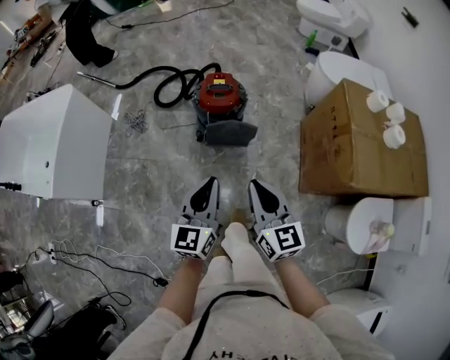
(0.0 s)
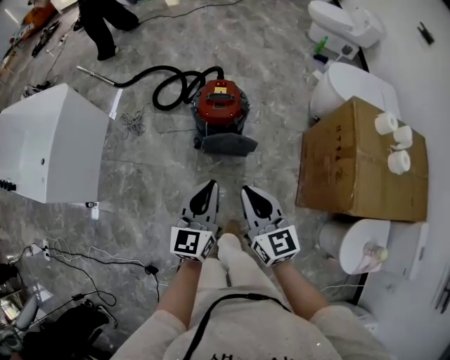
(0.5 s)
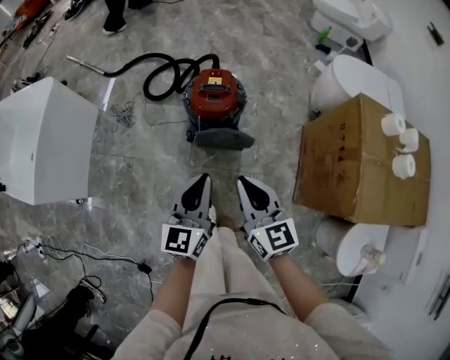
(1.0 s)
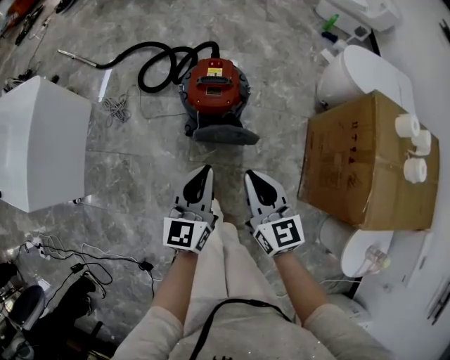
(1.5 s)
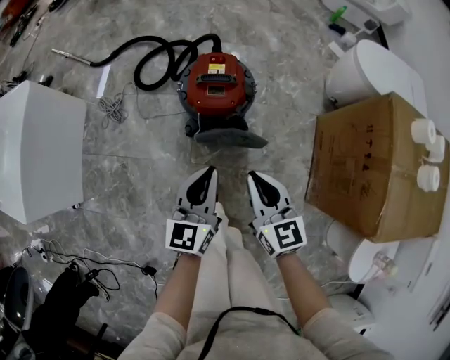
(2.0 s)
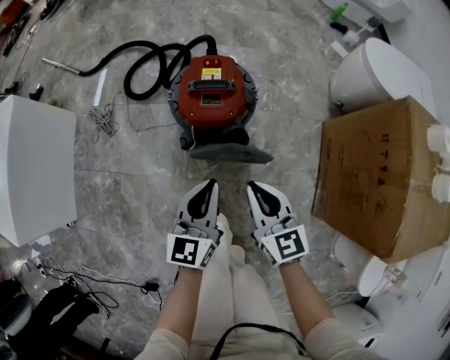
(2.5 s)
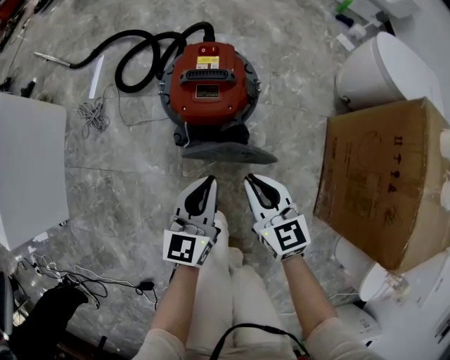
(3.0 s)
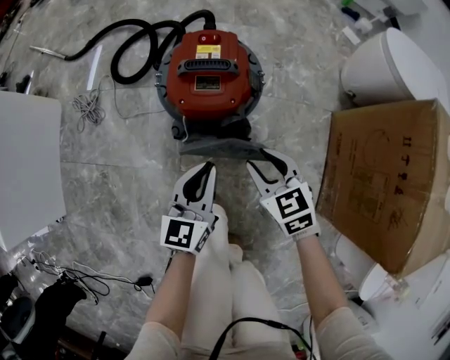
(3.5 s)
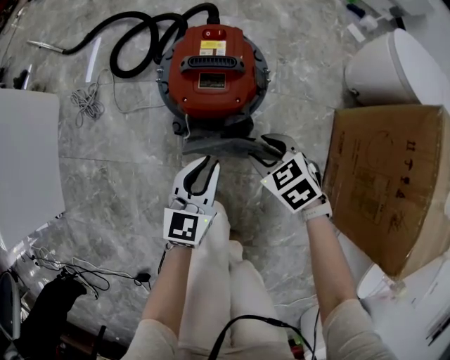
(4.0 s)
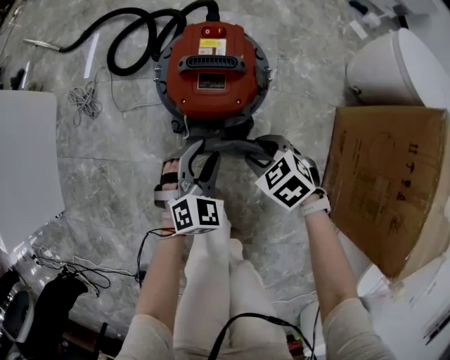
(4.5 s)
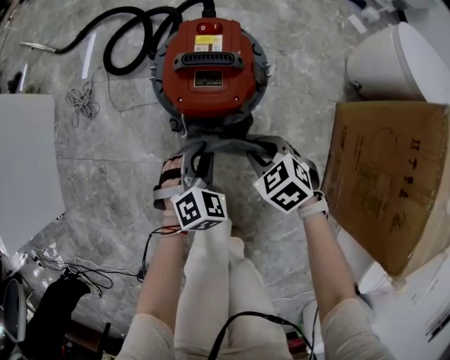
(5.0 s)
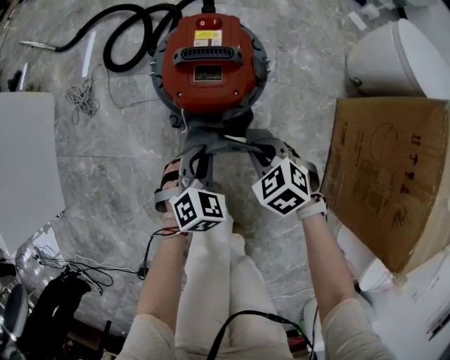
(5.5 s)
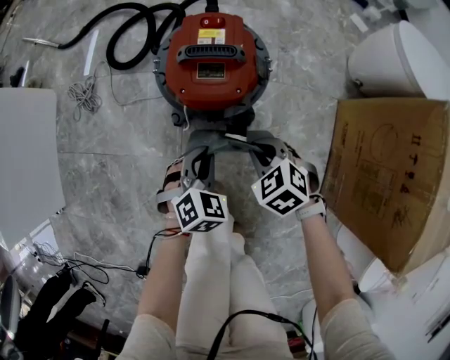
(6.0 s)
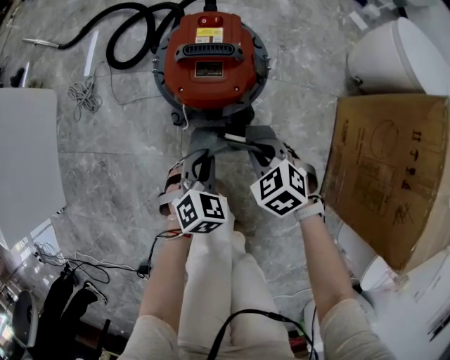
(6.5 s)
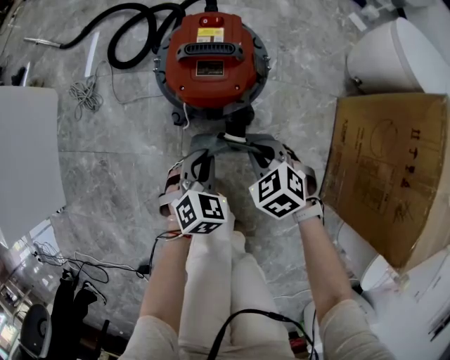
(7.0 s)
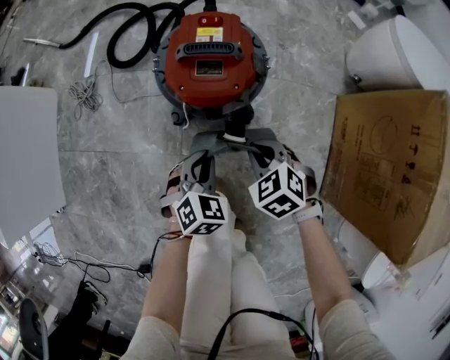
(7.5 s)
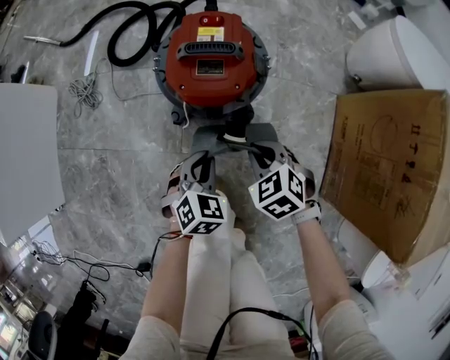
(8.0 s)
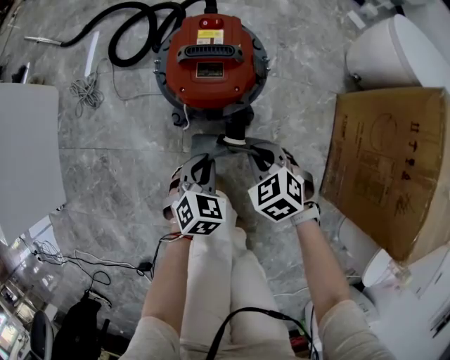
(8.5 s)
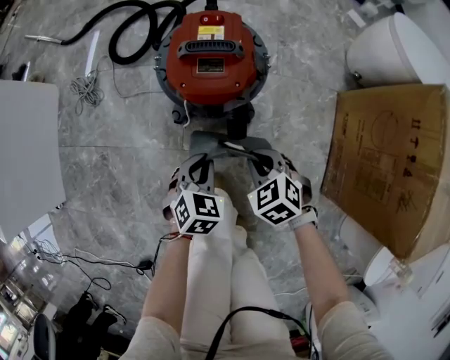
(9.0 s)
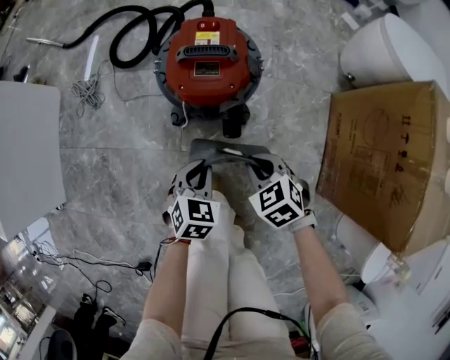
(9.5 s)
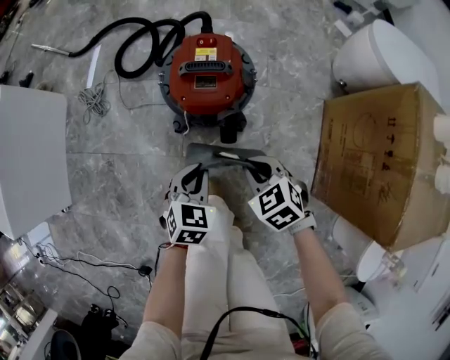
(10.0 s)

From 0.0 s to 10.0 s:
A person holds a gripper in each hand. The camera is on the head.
From 0.0 s to 2.0 s: Both grippers move forward and downward, some 30 cm.
From 2.0 s to 4.0 s: The left gripper travels downward by some 20 cm, while the right gripper goes roughly 25 cm downward and forward, angles its fingers downward, by some 40 degrees, and opens its fingers.
From 4.0 s to 6.0 s: The right gripper closes. The left gripper shifts approximately 5 cm downward, turns by some 50 degrees, and opens, then closes again.
From 6.0 s to 8.0 s: The grippers stay close to where they were, moving slightly.
From 8.0 s to 10.0 s: Both grippers travel together upward, approximately 10 cm.

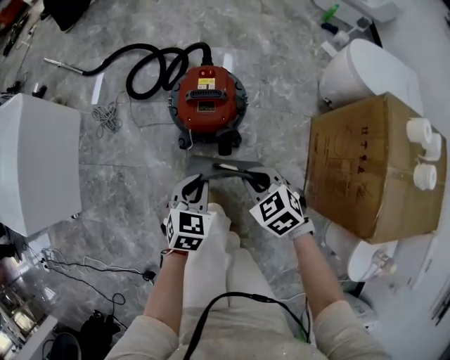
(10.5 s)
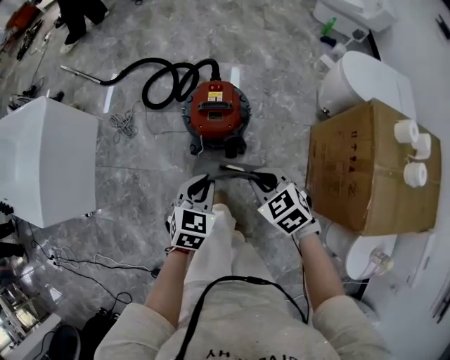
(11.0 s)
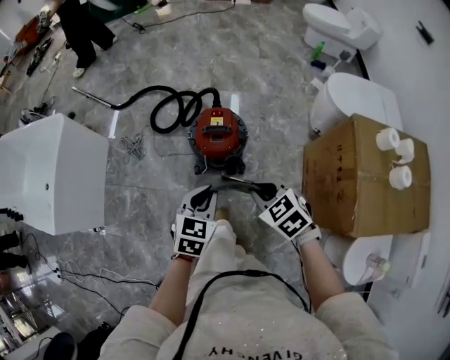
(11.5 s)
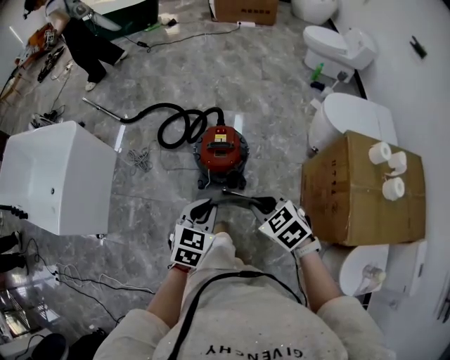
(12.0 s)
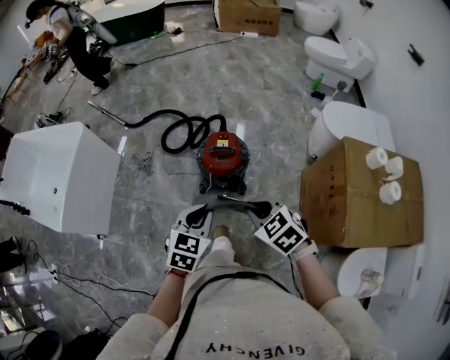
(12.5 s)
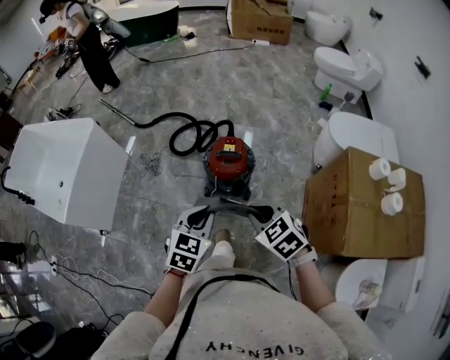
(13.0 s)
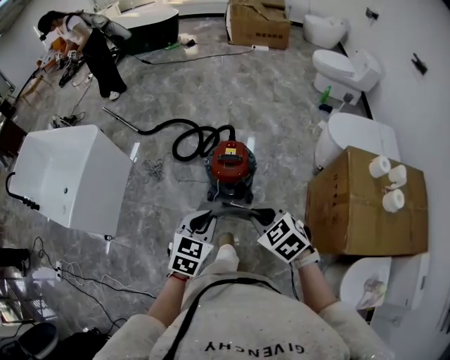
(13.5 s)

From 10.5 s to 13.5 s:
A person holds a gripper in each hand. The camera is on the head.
From 10.5 s to 12.0 s: Both grippers move upward, some 25 cm.
From 12.0 s to 13.5 s: The right gripper goes about 5 cm upward; the left gripper shifts by roughly 5 cm.

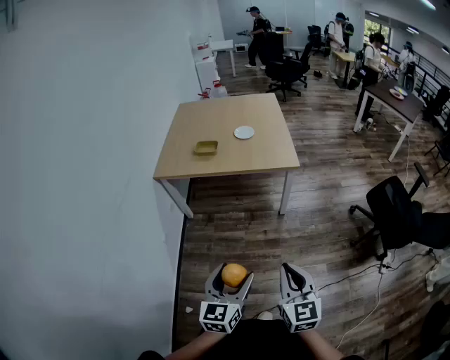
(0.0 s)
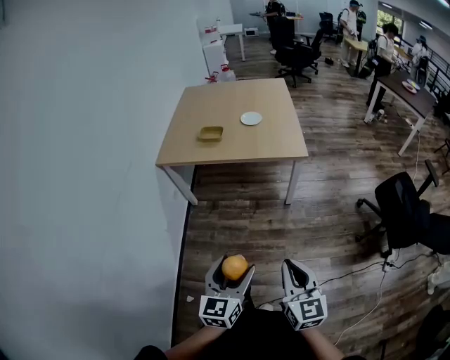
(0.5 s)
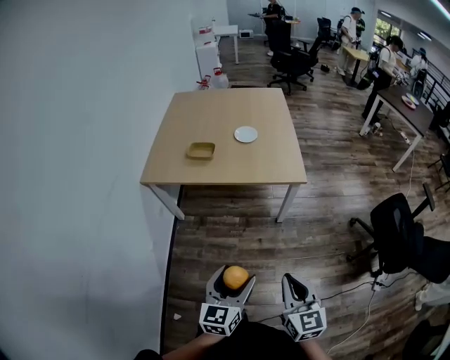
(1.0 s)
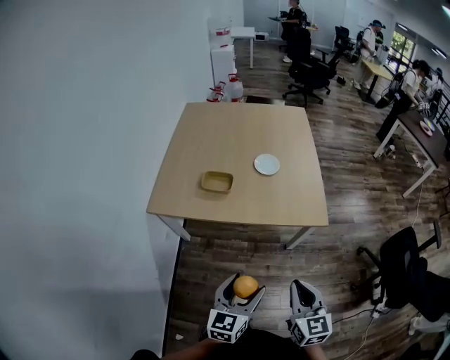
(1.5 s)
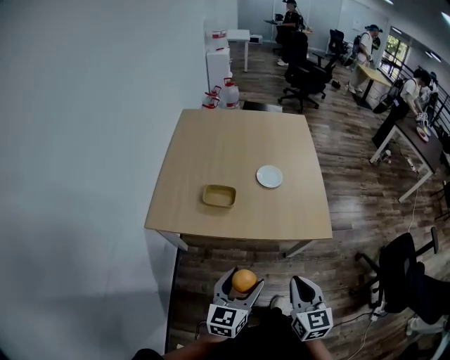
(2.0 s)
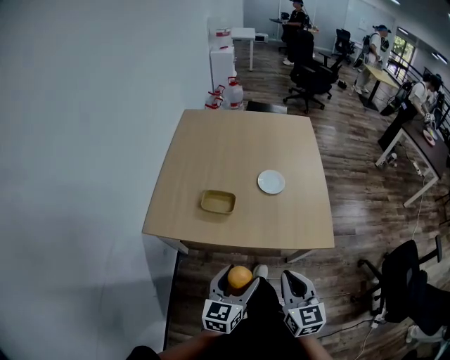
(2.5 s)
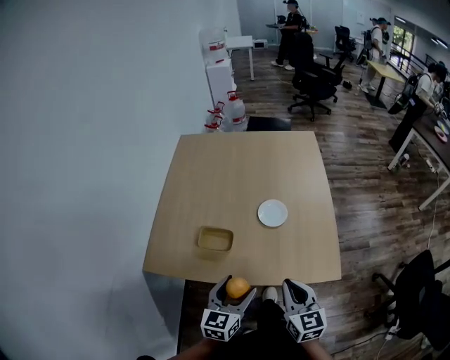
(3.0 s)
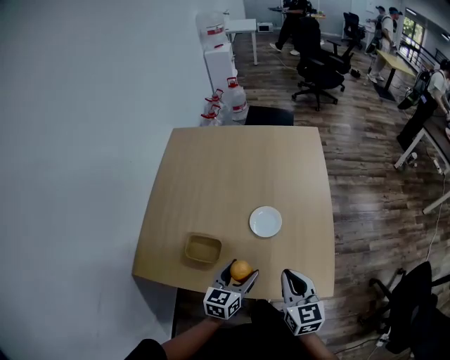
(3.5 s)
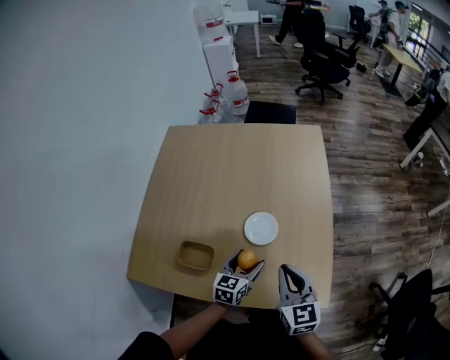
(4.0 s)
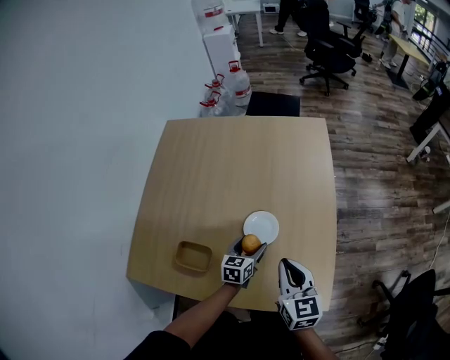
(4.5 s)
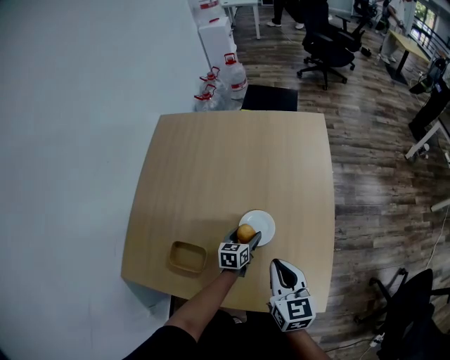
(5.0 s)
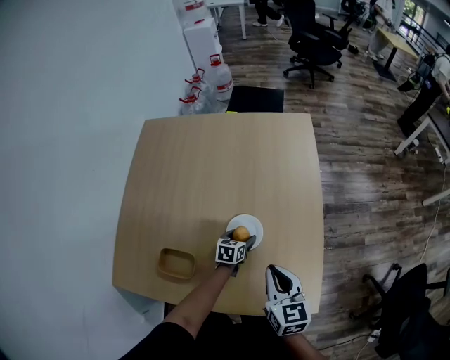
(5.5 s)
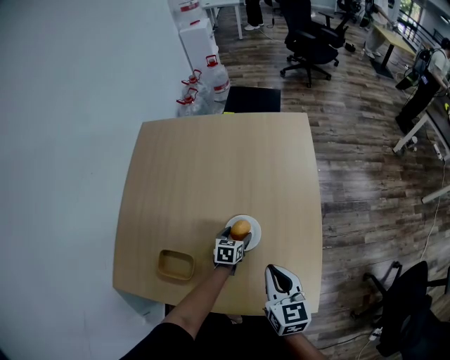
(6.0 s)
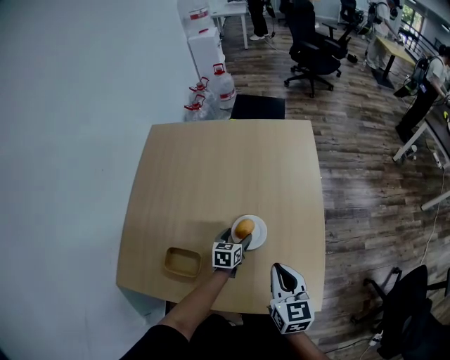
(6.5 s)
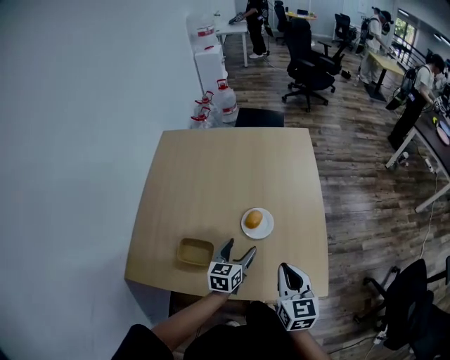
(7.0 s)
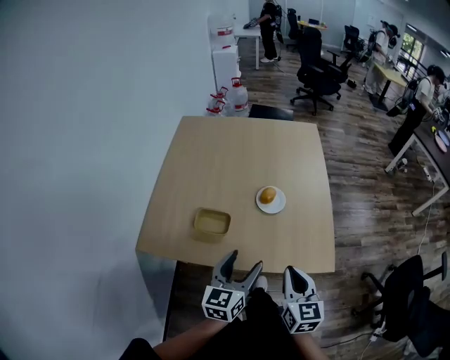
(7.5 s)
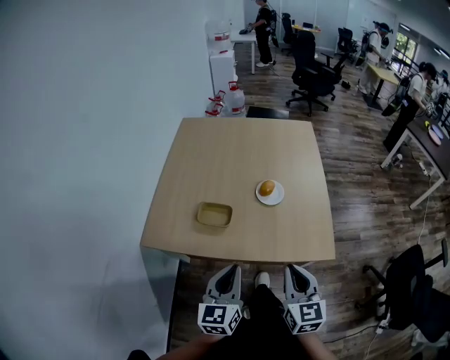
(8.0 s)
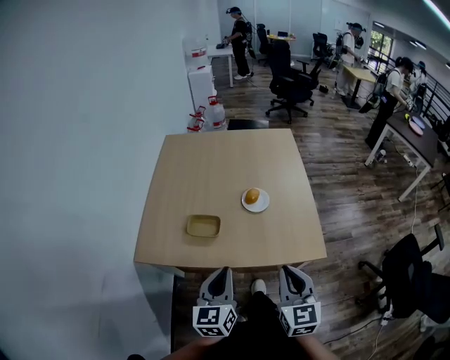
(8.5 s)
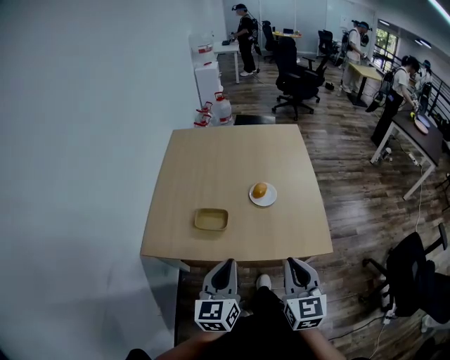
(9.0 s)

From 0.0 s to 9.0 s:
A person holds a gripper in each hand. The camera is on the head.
From 0.0 s to 2.0 s: The two grippers travel together, forward, roughly 40 cm.
From 2.0 s to 4.5 s: The pair of grippers is taken forward, about 40 cm. The left gripper travels downward by roughly 20 cm, and swivels about 20 degrees.
From 4.5 s to 7.0 s: The right gripper shifts some 10 cm backward. The left gripper moves upward and backward, roughly 10 cm.
From 7.0 s to 9.0 s: The right gripper moves backward, some 20 cm, while the left gripper moves backward and upward, approximately 35 cm, turns by approximately 20 degrees, and closes its fingers.

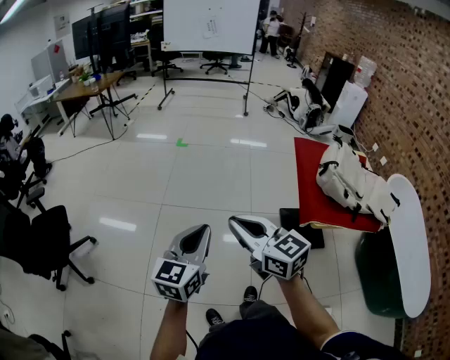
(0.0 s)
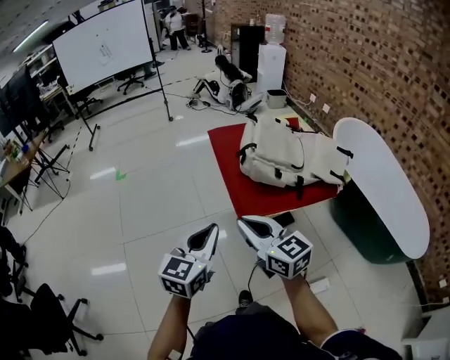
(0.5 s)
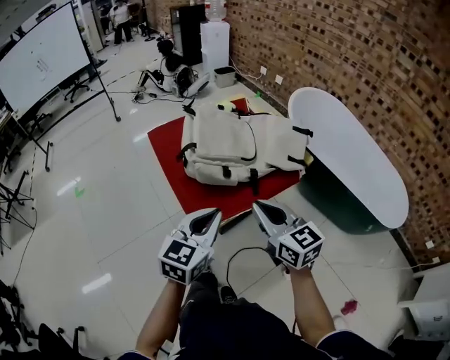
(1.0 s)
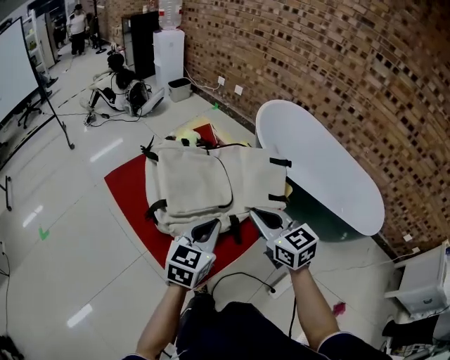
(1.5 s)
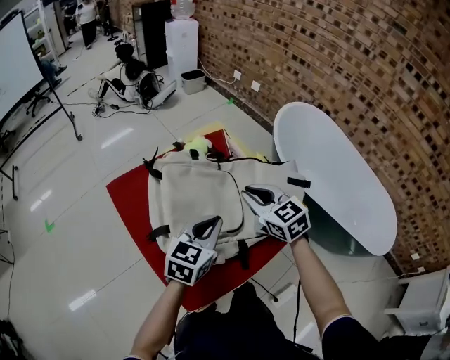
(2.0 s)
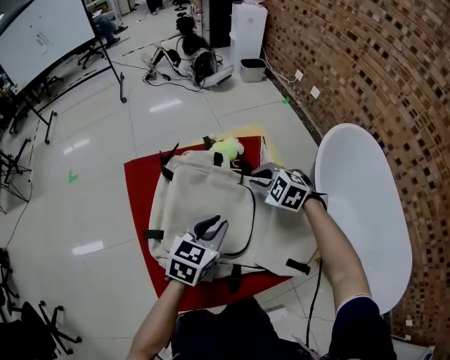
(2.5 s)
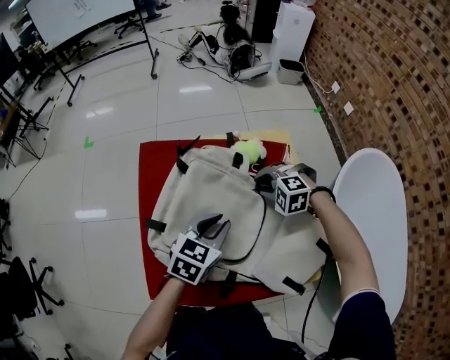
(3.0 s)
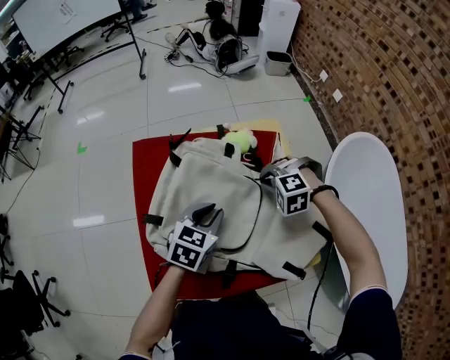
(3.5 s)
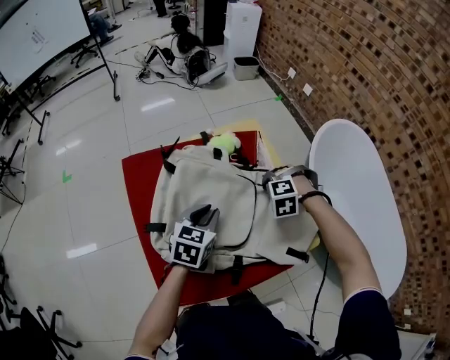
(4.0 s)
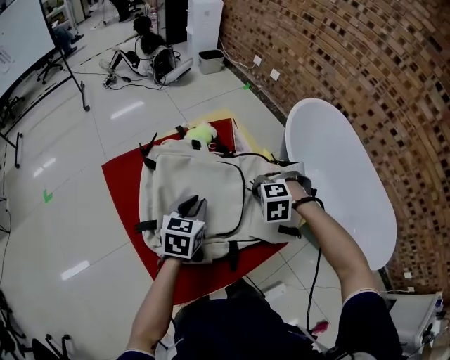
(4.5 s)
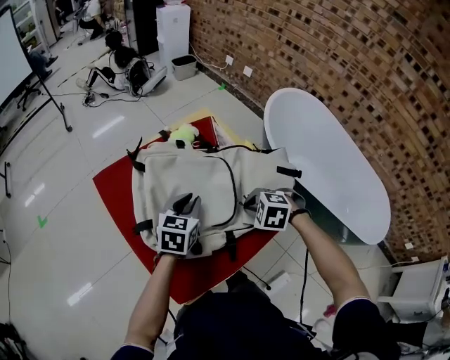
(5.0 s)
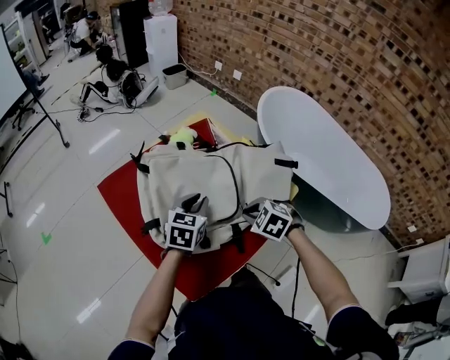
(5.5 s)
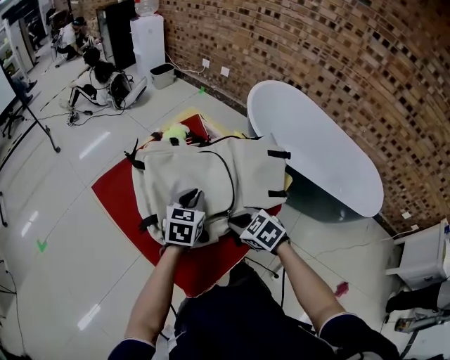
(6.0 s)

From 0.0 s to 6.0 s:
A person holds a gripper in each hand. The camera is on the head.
From 0.0 s to 2.0 s: The two grippers travel together, roughly 80 cm. The left gripper swivels roughly 50 degrees, while the right gripper rotates approximately 50 degrees.
From 2.0 s to 4.0 s: The right gripper heads downward, covering approximately 15 cm, and rotates around the line of its fingers by roughly 70 degrees, counterclockwise from behind, while the left gripper moves approximately 10 cm, and swivels about 30 degrees.
From 4.0 s to 6.0 s: The right gripper changes place by about 25 cm, and twists approximately 70 degrees clockwise, seen from behind, while the left gripper swivels approximately 20 degrees.
